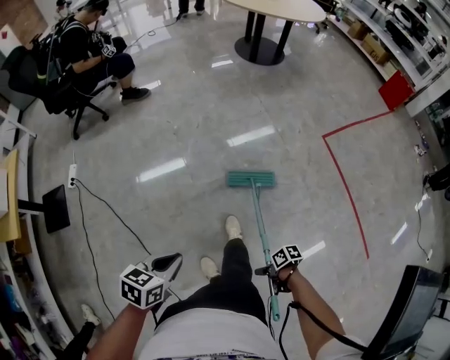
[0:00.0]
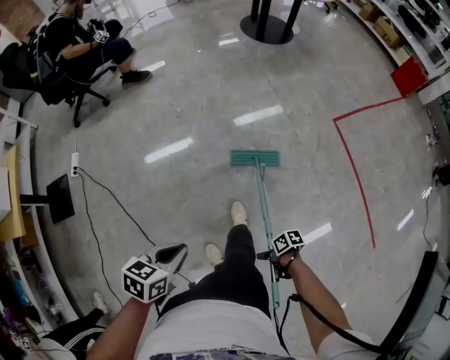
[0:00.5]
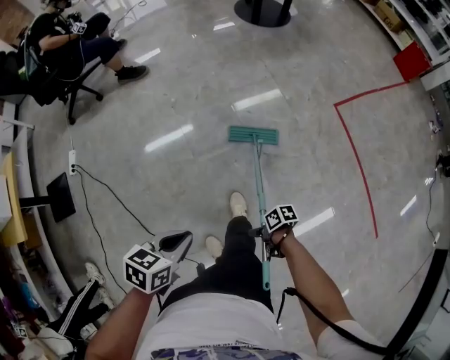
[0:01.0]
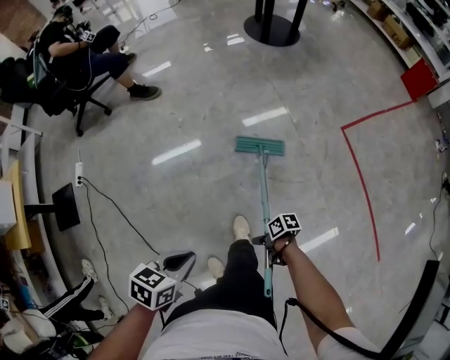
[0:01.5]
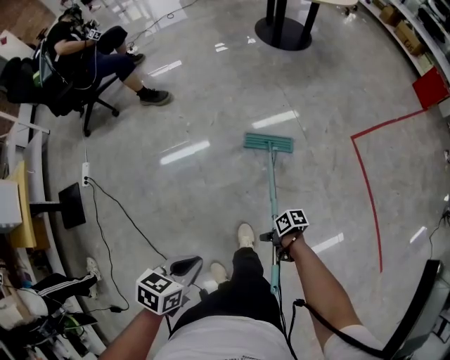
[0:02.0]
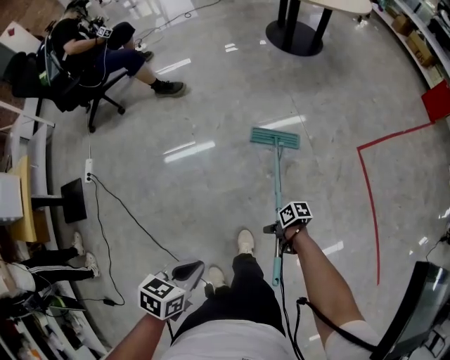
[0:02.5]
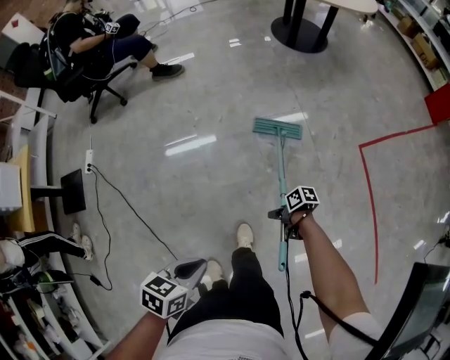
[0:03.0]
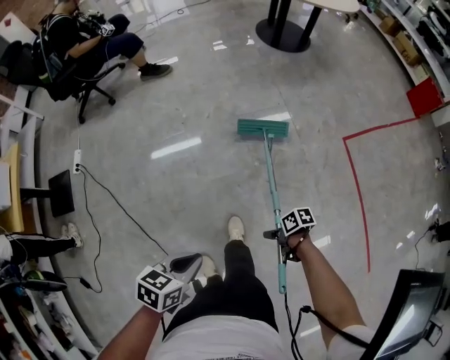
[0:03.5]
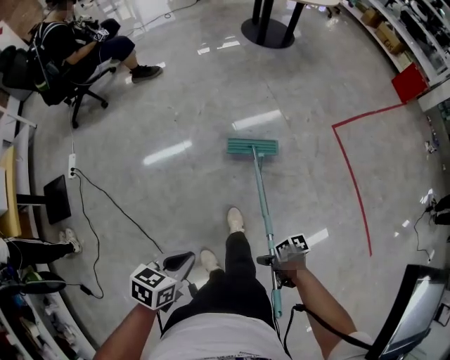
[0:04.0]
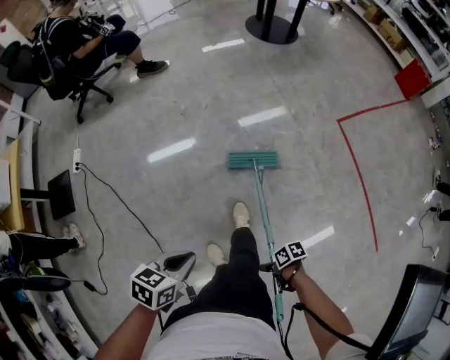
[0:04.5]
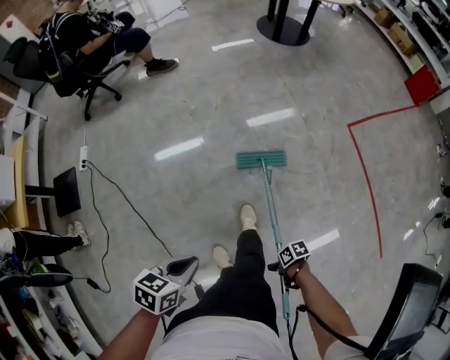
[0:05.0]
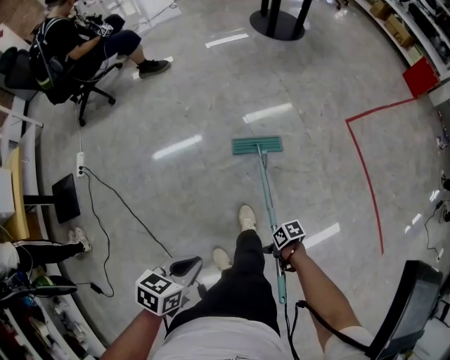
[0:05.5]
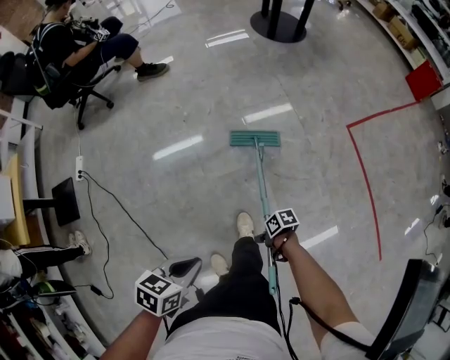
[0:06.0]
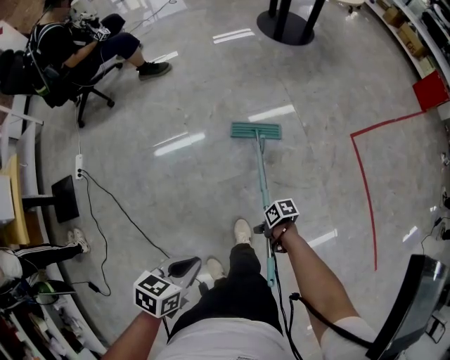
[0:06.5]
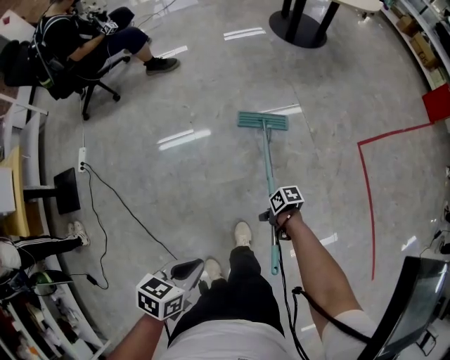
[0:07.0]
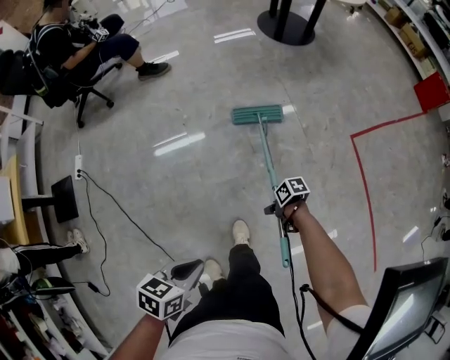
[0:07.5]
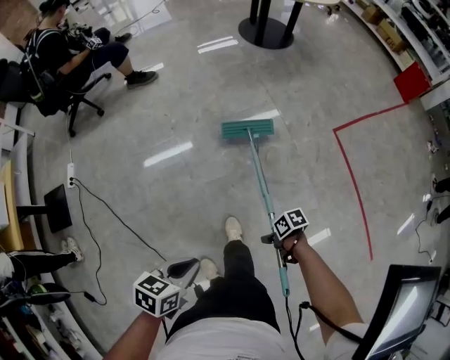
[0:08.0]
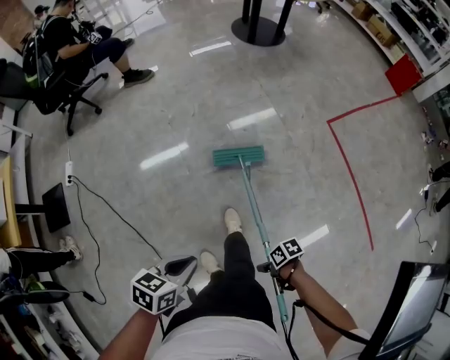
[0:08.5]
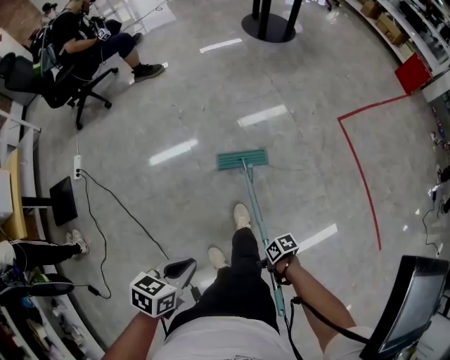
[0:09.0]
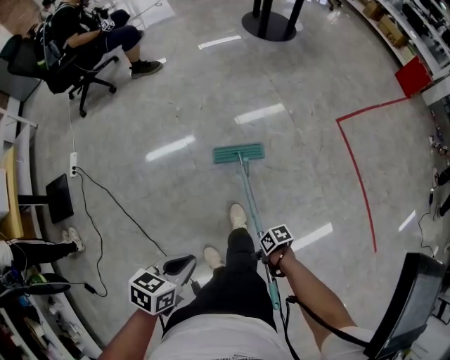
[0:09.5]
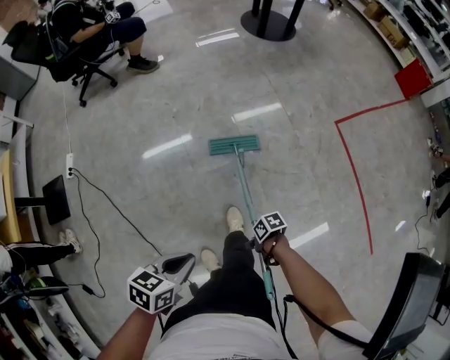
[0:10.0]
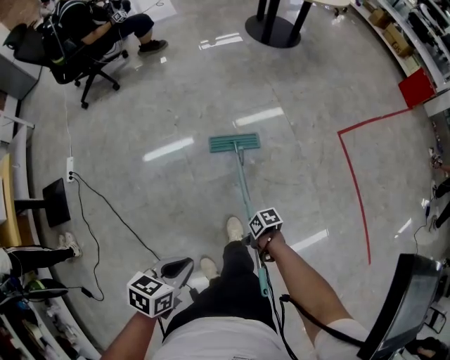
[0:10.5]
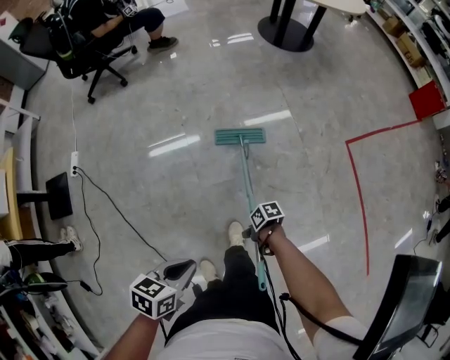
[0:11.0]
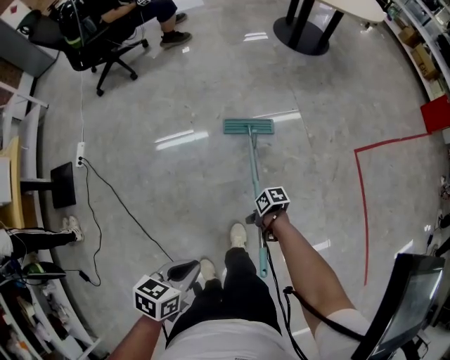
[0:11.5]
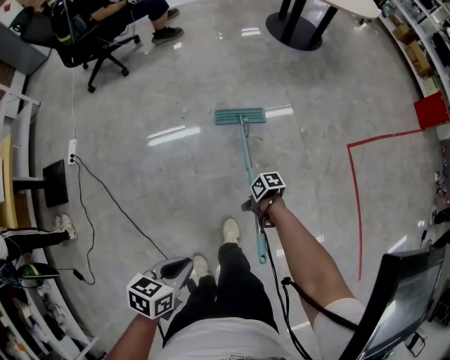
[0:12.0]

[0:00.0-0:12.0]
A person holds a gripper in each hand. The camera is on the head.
0:00.0 to 0:02.0: The left gripper shifts by approximately 10 cm.
0:02.0 to 0:04.0: The left gripper shifts by about 10 cm.
0:10.0 to 0:12.0: The left gripper ends up roughly 5 cm from where it was.

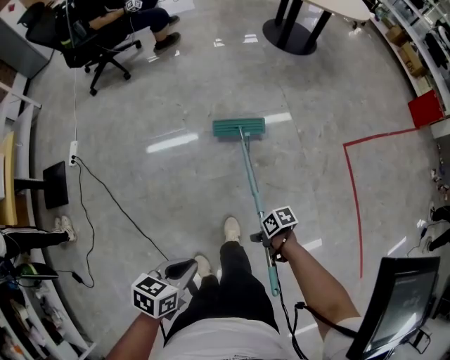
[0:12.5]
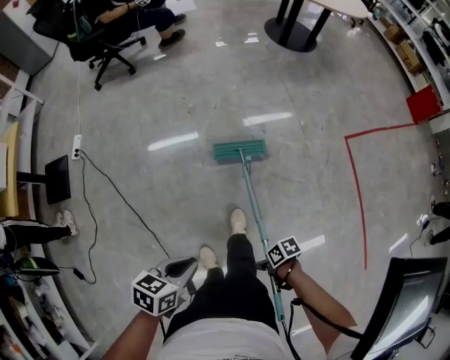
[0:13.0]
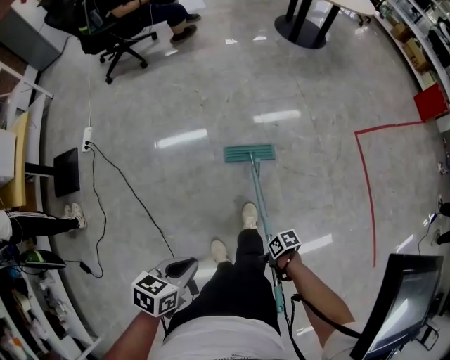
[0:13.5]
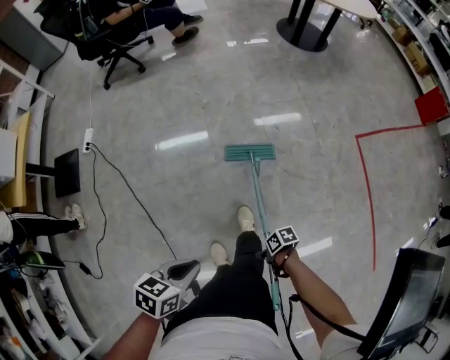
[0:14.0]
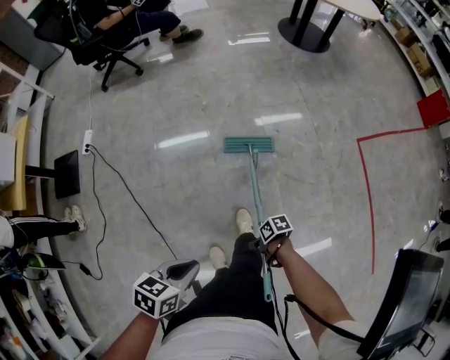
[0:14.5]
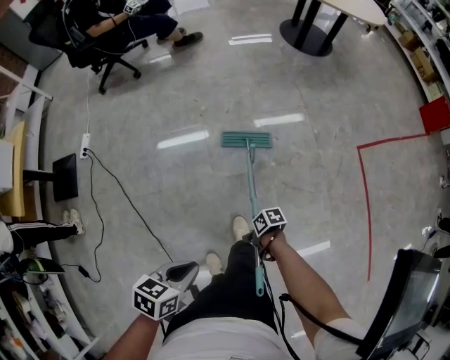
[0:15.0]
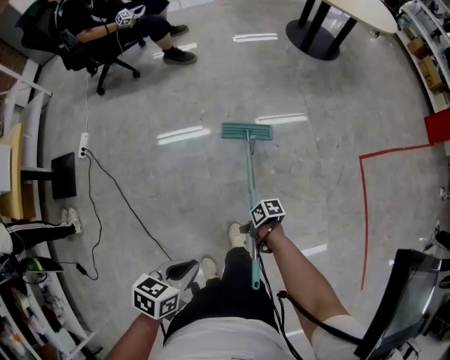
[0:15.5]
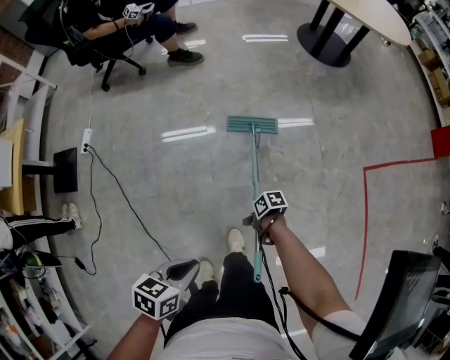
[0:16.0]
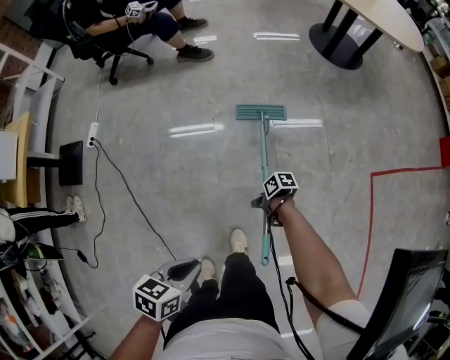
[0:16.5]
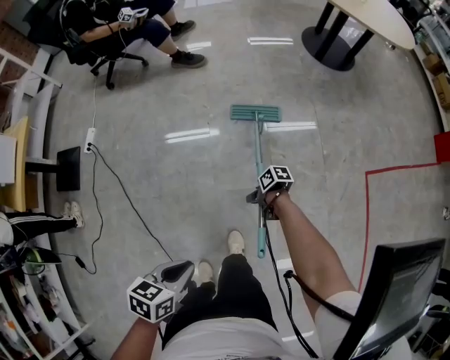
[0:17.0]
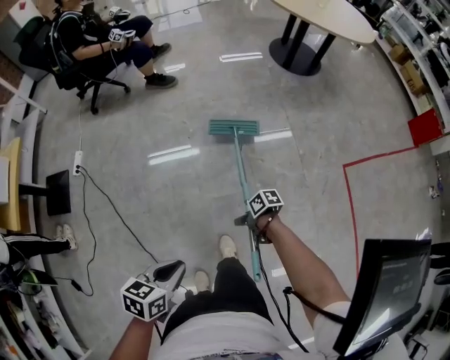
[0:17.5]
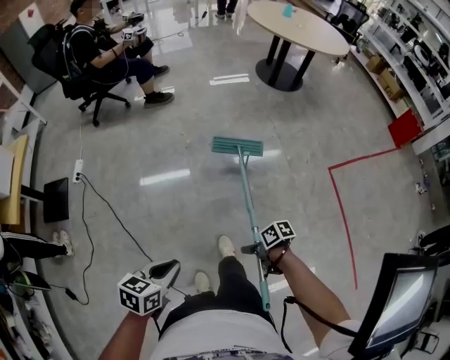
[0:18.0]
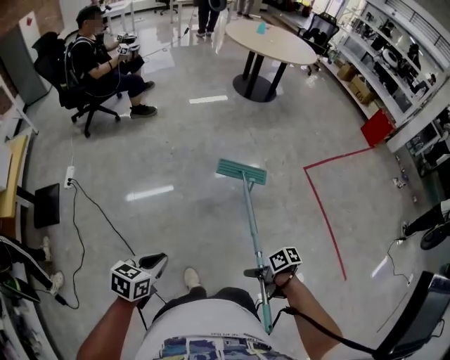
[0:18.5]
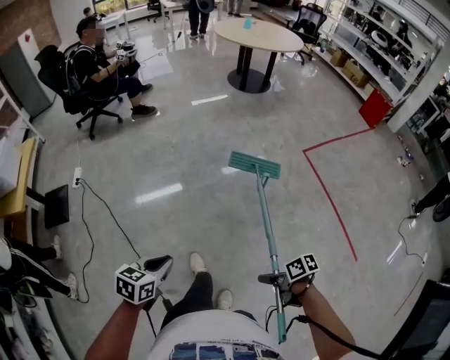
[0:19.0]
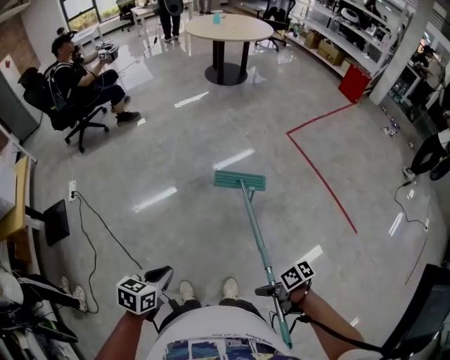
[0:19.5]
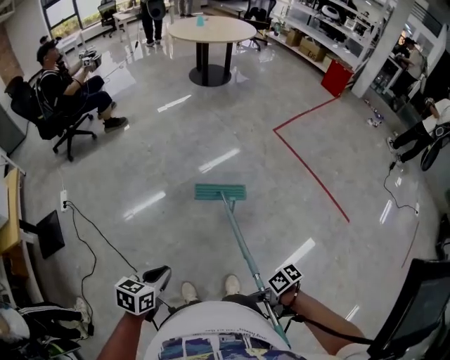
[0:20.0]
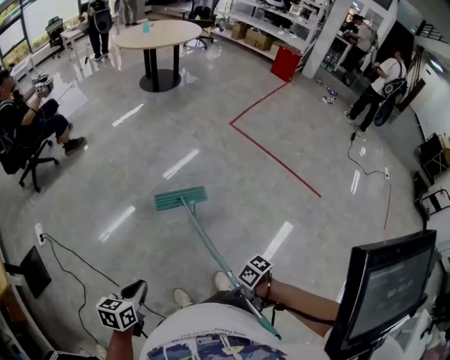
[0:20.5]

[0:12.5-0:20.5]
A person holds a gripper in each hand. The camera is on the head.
0:12.5 to 0:14.5: The left gripper moves some 10 cm.
0:14.5 to 0:16.5: The left gripper moves roughly 15 cm.
0:16.5 to 0:18.5: The left gripper ends up approximately 20 cm from where it was, and rotates approximately 20 degrees.
0:18.5 to 0:20.5: The left gripper ends up about 20 cm from where it was.

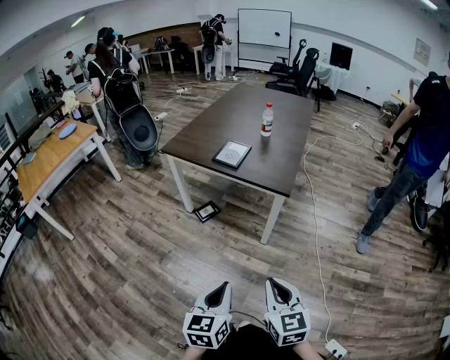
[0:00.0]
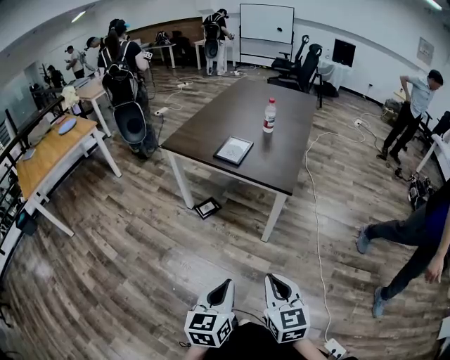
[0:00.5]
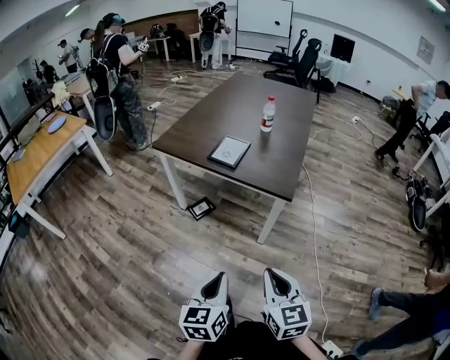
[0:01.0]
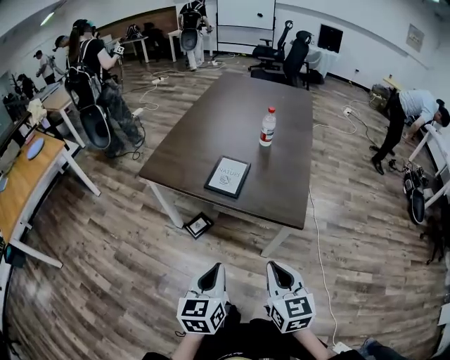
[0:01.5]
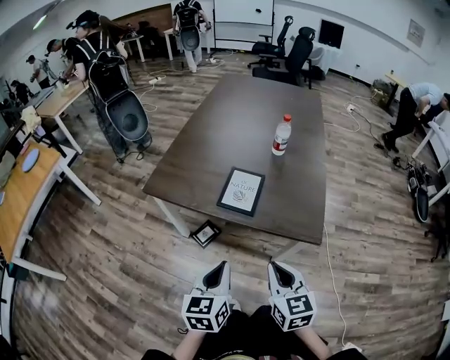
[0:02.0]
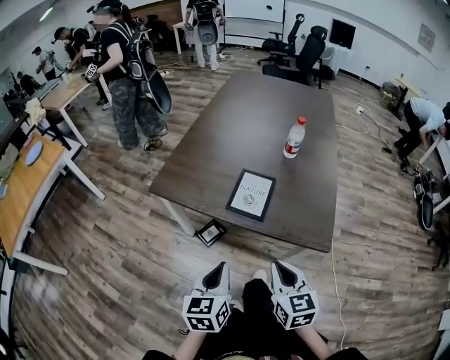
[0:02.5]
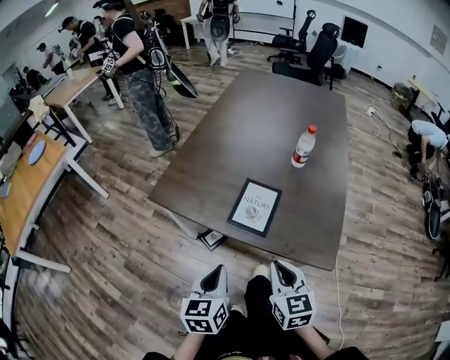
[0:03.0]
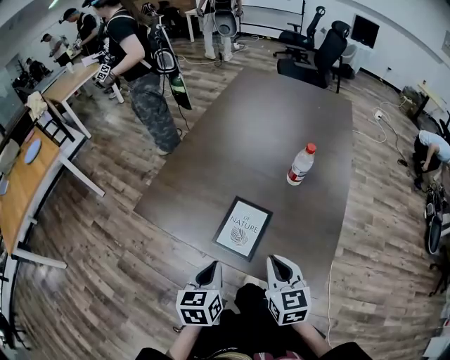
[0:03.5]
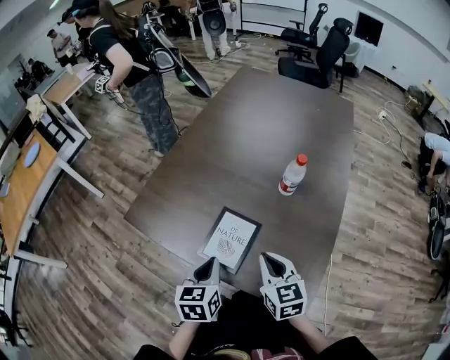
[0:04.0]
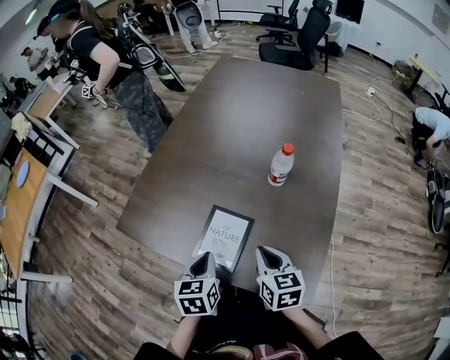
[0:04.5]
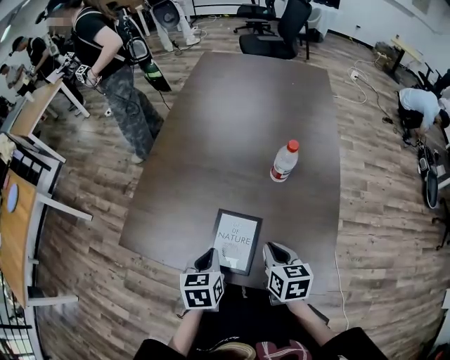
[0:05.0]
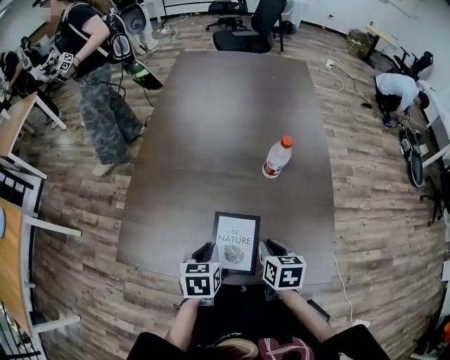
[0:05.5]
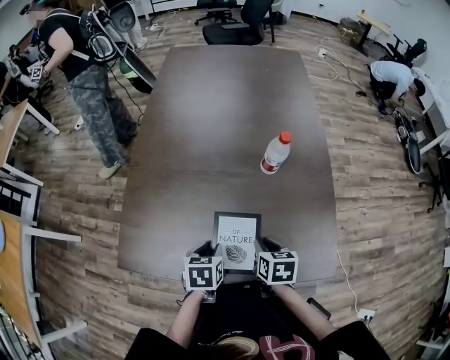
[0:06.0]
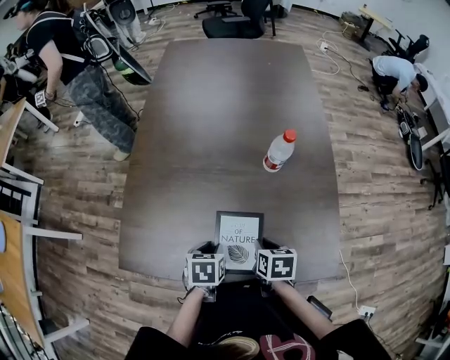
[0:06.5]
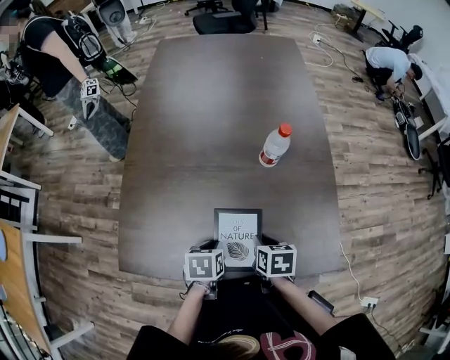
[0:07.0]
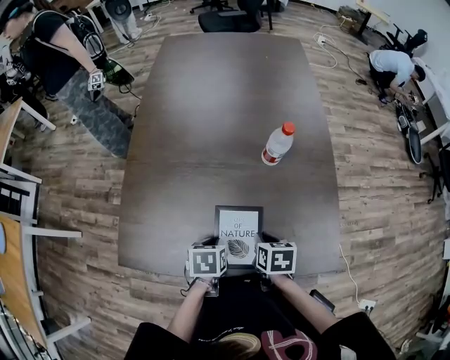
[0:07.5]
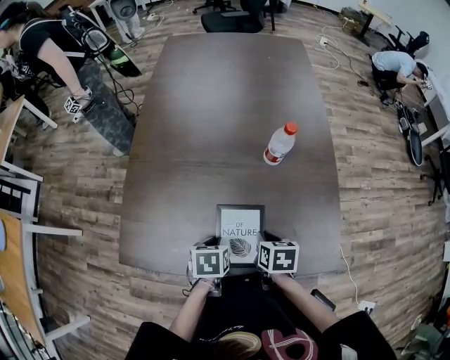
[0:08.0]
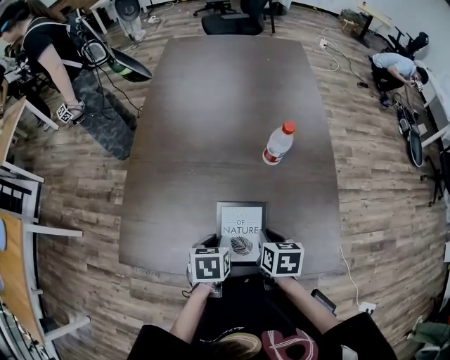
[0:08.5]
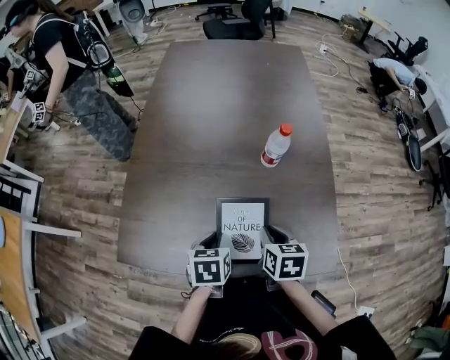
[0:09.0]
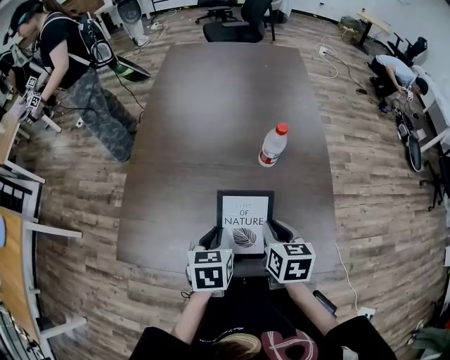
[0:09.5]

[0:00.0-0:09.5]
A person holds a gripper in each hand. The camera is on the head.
0:00.0 to 0:02.0: Both grippers are carried forward, approximately 40 cm.
0:02.0 to 0:04.0: Both grippers travel together forward, some 25 cm.
0:04.0 to 0:05.5: The right gripper moves downward, about 10 cm, and changes its angle by approximately 40 degrees; the left gripper heads forward and downward, covering about 10 cm, and changes its angle by some 30 degrees.
0:05.5 to 0:07.5: The right gripper ends up approximately 5 cm from where it was. Meanwhile the left gripper travels downward by about 5 cm.
0:07.5 to 0:09.5: The grippers both shift upward by some 10 cm. The left gripper rotates some 20 degrees.
